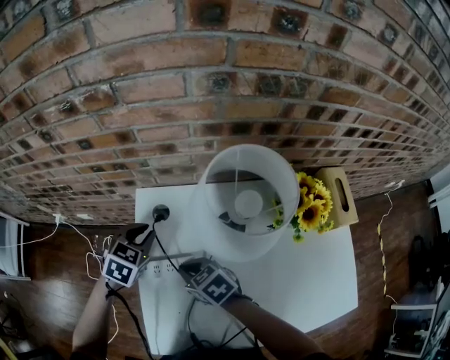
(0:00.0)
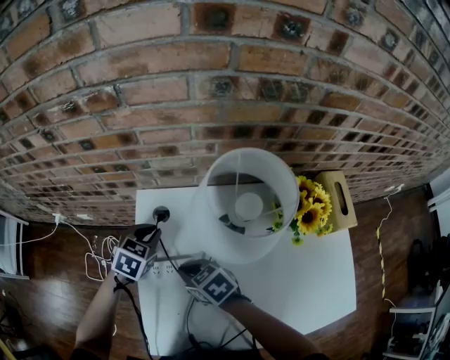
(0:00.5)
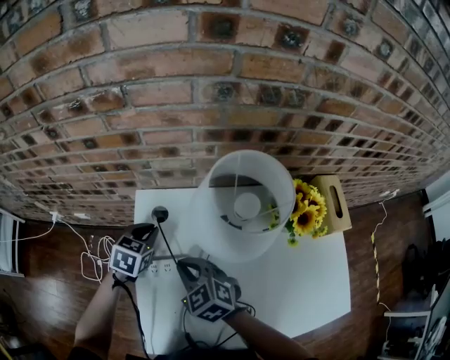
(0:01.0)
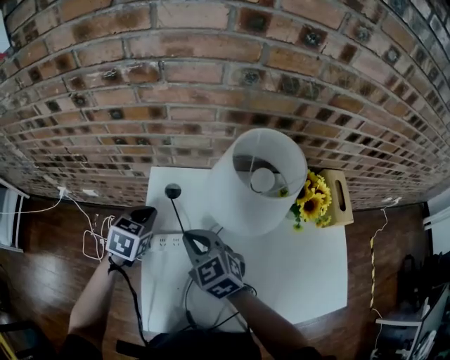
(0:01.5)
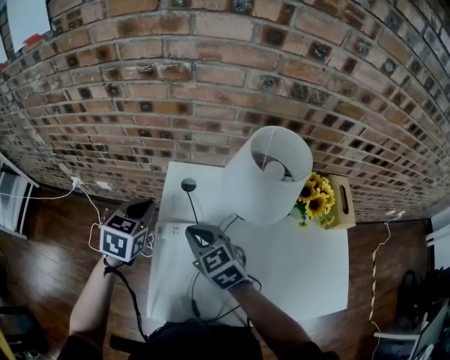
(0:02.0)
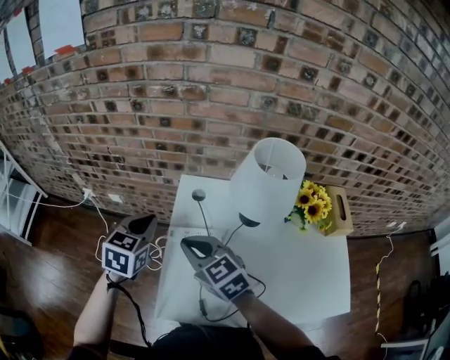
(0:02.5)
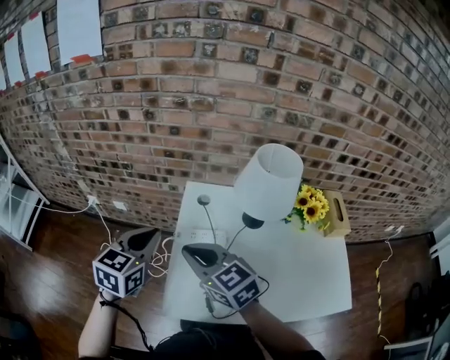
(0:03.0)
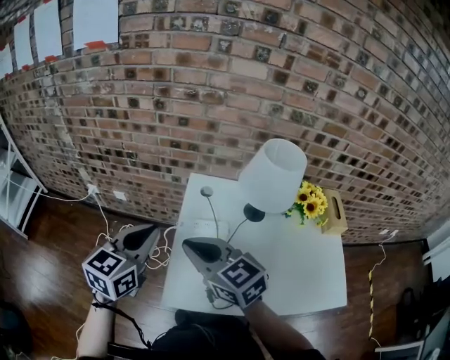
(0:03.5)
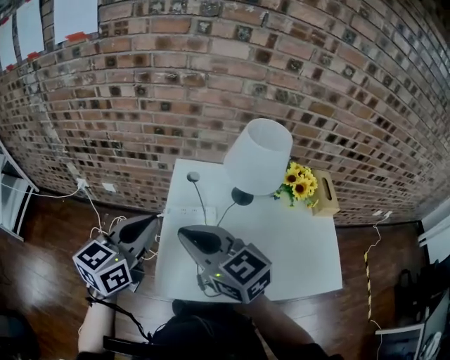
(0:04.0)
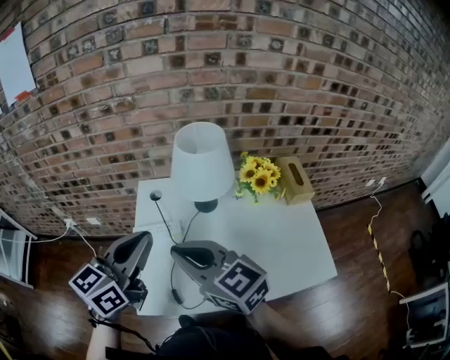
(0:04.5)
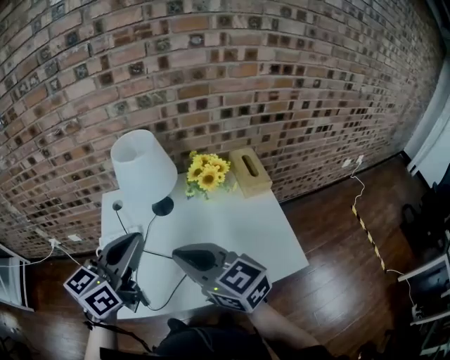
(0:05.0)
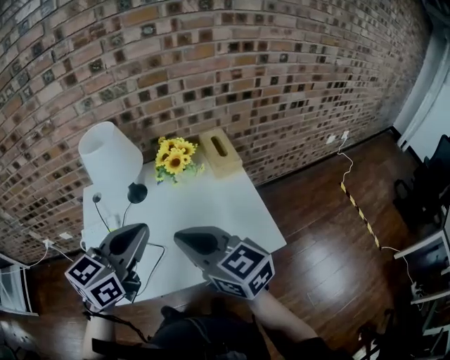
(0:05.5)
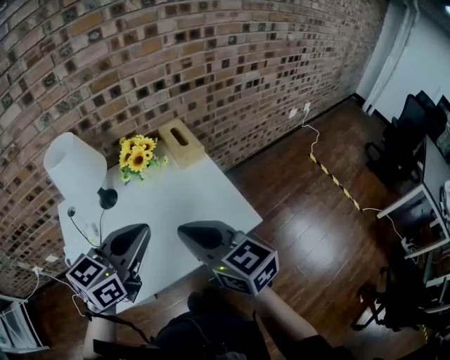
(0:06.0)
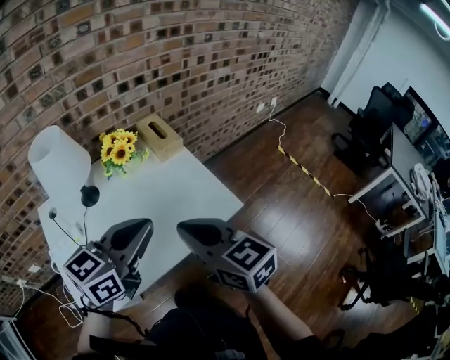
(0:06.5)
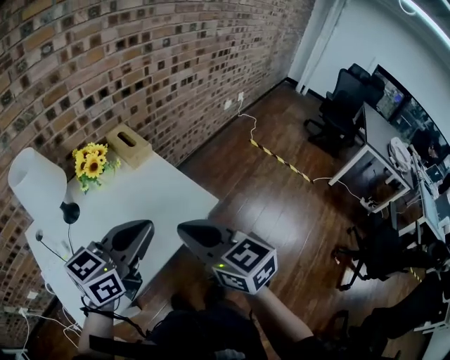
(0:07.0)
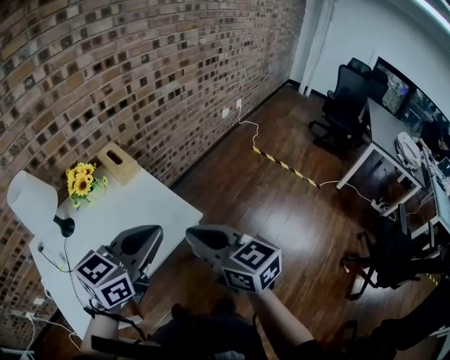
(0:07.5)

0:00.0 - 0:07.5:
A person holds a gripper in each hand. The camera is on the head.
0:00.0 - 0:02.0: The right gripper shifts approximately 10 cm upward, and changes its angle by about 30 degrees; the left gripper goes some 15 cm to the left, upward and backward, and changes its angle by roughly 20 degrees.
0:02.0 - 0:04.0: The left gripper goes about 25 cm backward and upward, and turns by roughly 30 degrees. Meanwhile the right gripper goes approximately 20 cm upward and backward, and swivels some 20 degrees.
0:04.0 - 0:05.5: The two grippers go some 35 cm to the right. The right gripper changes its angle by about 20 degrees. The left gripper turns by approximately 20 degrees.
0:05.5 - 0:07.5: The right gripper ends up approximately 25 cm from where it was, and turns by about 40 degrees, while the left gripper moves about 25 cm, and turns by about 40 degrees.

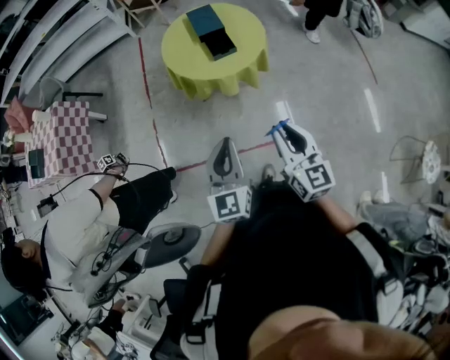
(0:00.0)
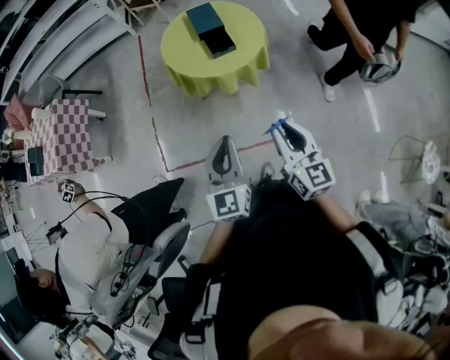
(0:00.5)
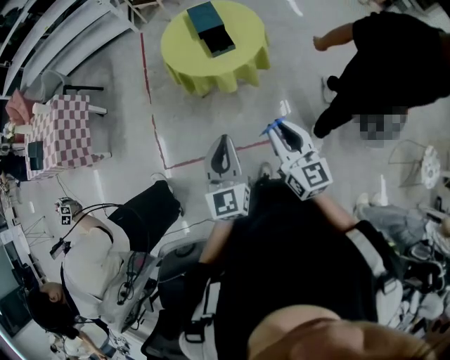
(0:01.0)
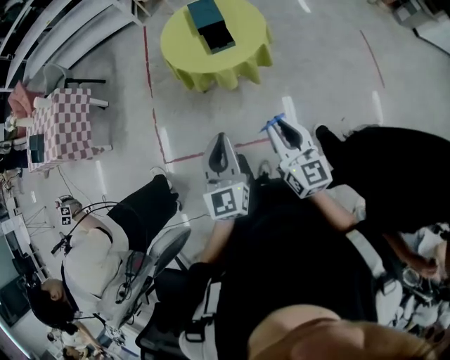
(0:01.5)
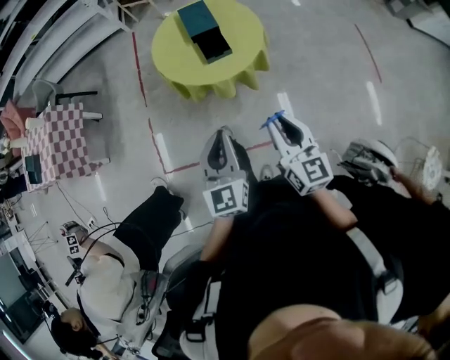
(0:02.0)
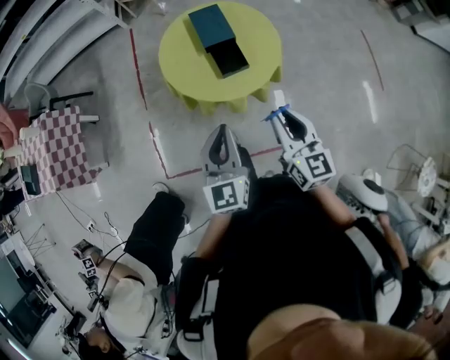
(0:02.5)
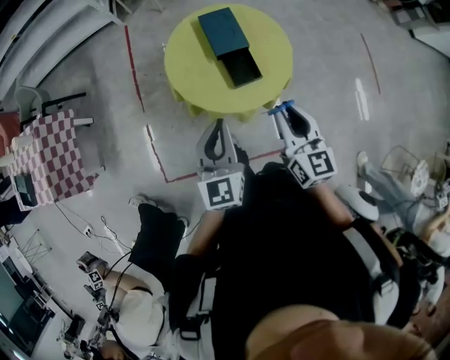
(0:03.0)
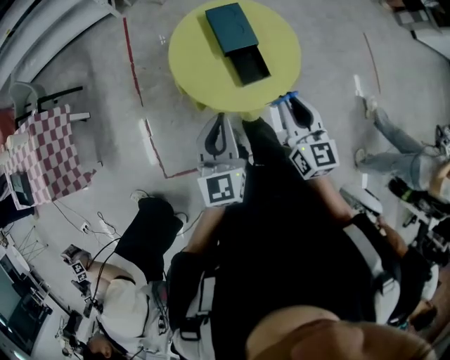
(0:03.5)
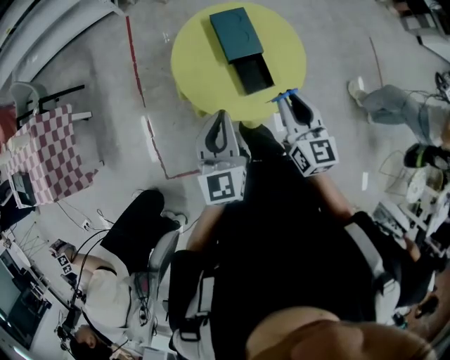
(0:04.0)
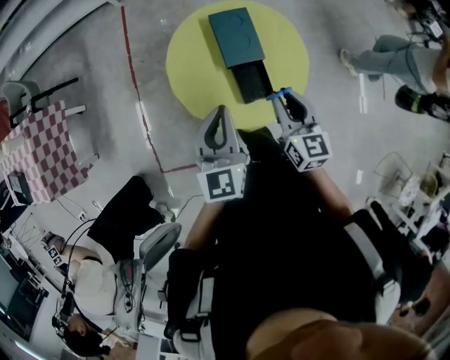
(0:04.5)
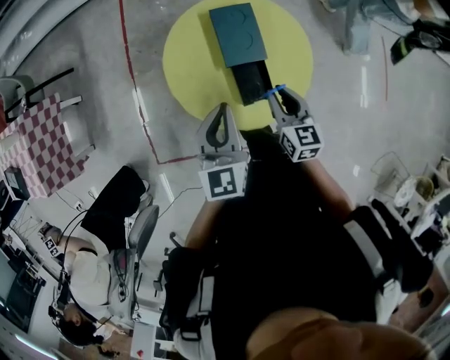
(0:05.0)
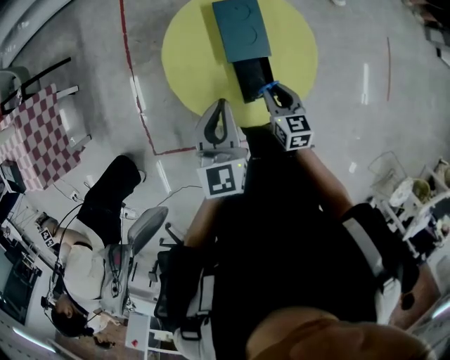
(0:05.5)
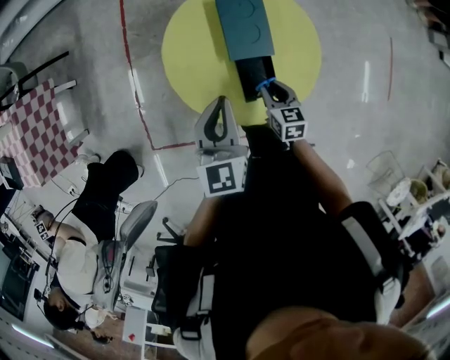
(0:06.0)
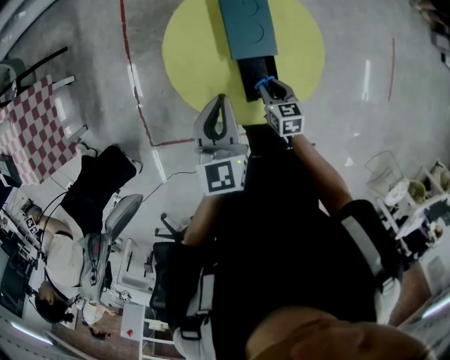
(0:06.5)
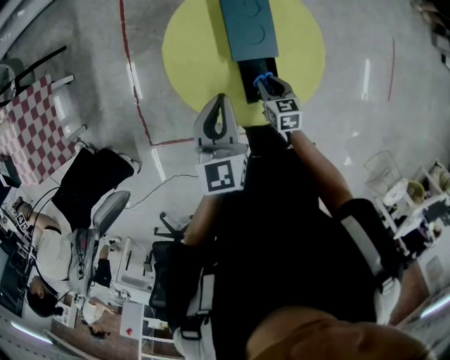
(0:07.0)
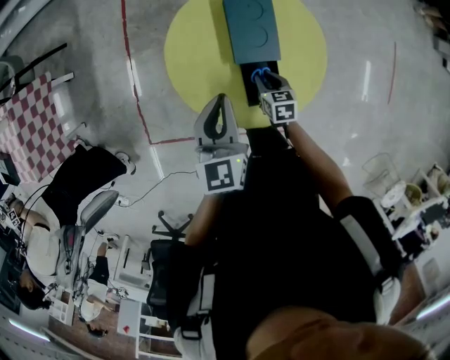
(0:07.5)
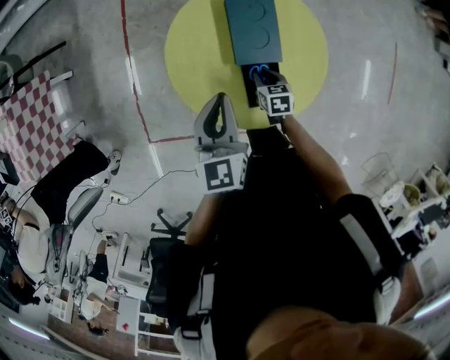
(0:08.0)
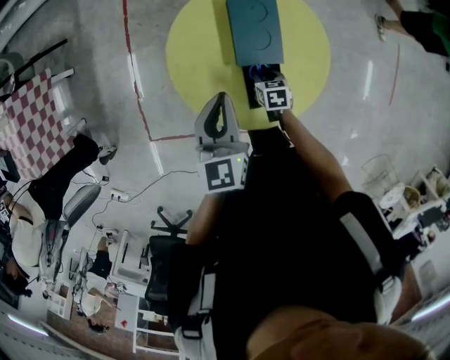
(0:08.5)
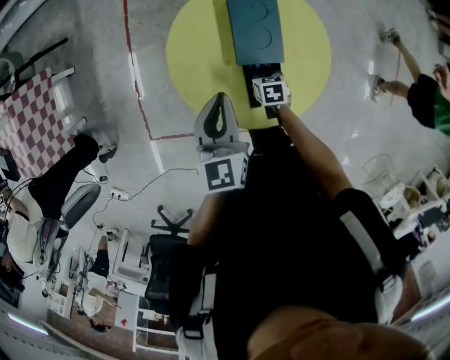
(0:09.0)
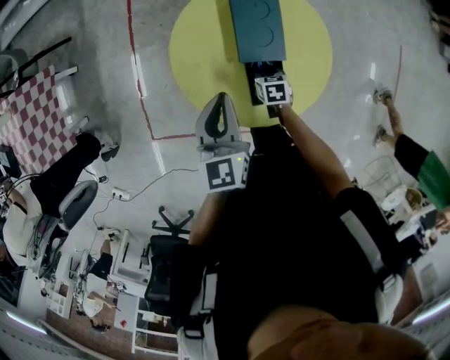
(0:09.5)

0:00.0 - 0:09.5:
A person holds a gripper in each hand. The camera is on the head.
0:00.0 - 0:02.0: The left gripper heads forward, covering roughly 10 cm. Meanwhile the right gripper moves forward and to the right, roughly 10 cm.
0:02.0 - 0:04.0: The two grippers go some 40 cm forward.
0:04.0 - 0:05.5: The right gripper is displaced downward and forward by roughly 25 cm, and changes its angle by about 30 degrees, while the left gripper shifts about 15 cm forward and downward.
0:05.5 - 0:07.5: The right gripper goes some 10 cm downward.
0:07.5 - 0:09.5: The right gripper is displaced downward by about 5 cm.

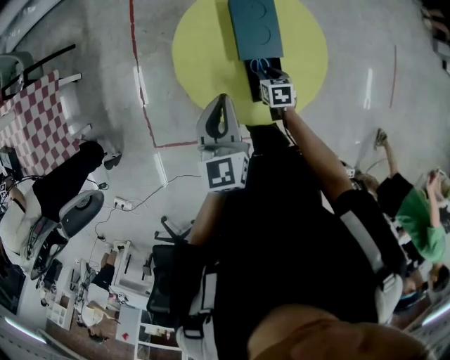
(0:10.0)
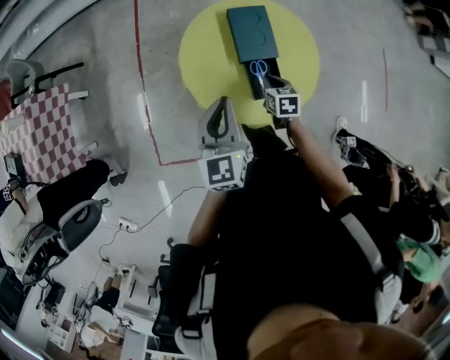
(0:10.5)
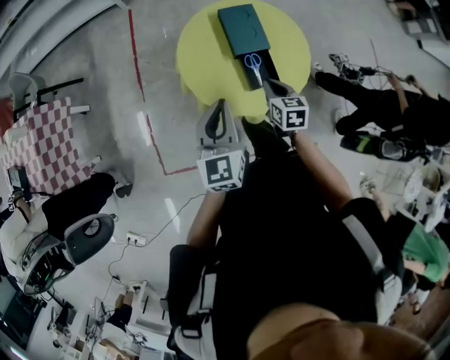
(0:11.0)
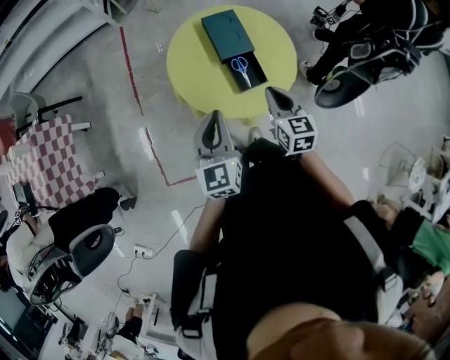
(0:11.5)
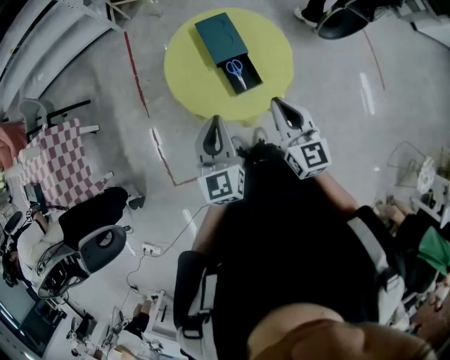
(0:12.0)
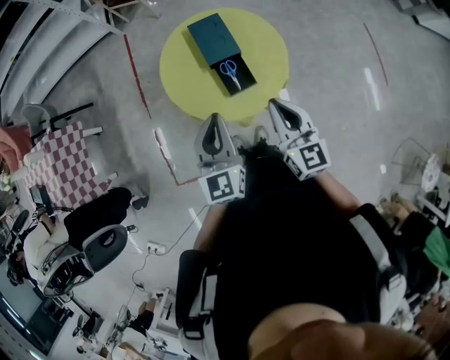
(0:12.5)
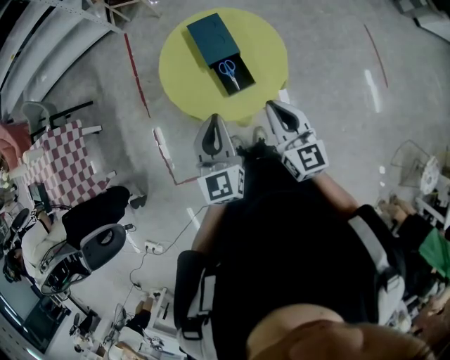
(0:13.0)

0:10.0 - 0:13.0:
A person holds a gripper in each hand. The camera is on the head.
0:10.0 - 0:11.5: The left gripper travels backward by about 20 cm; the right gripper travels upward and backward by about 35 cm, and points its fingers roughly 40 degrees further upward.
0:11.5 - 0:13.0: The left gripper travels to the right by about 5 cm. Meanwhile the right gripper is displaced upward by some 10 cm.

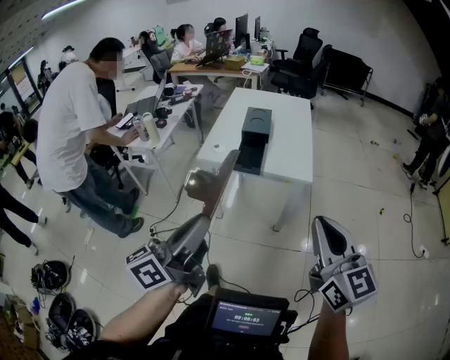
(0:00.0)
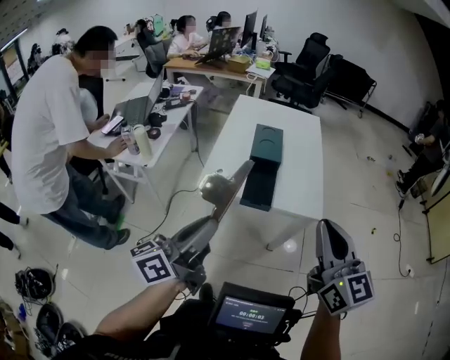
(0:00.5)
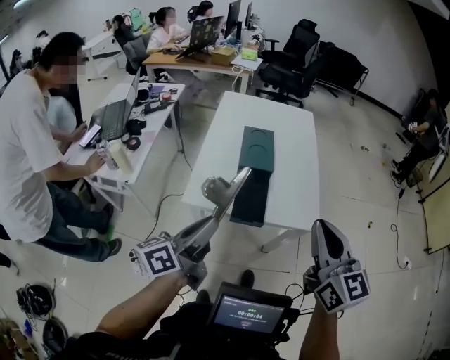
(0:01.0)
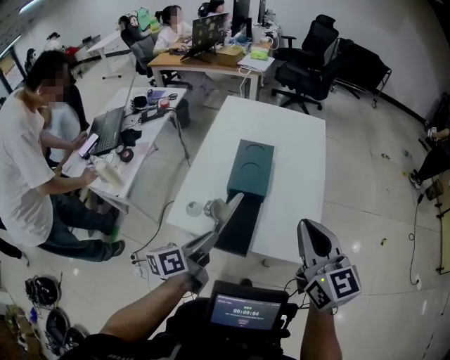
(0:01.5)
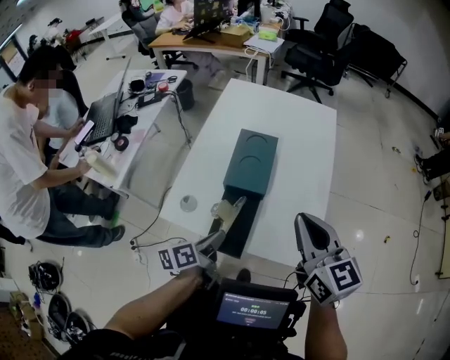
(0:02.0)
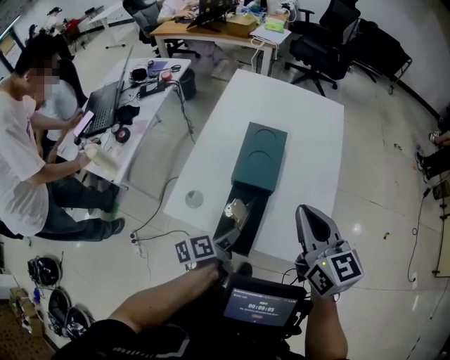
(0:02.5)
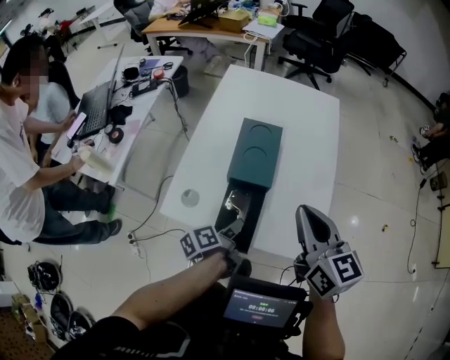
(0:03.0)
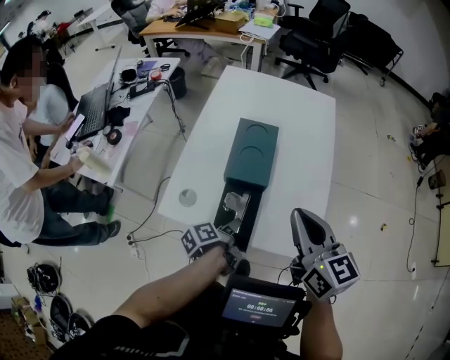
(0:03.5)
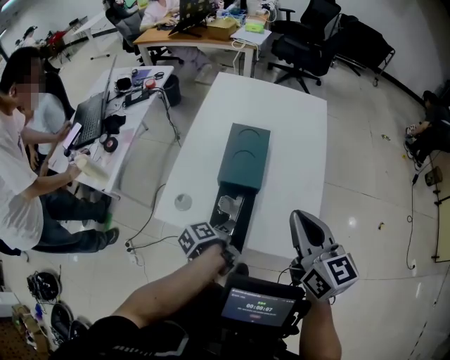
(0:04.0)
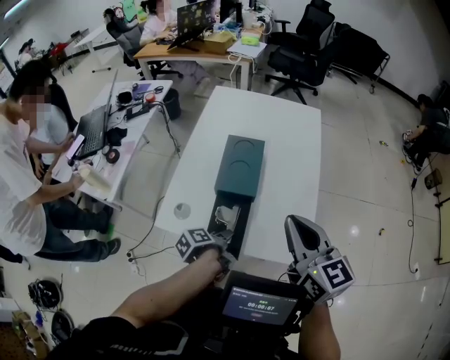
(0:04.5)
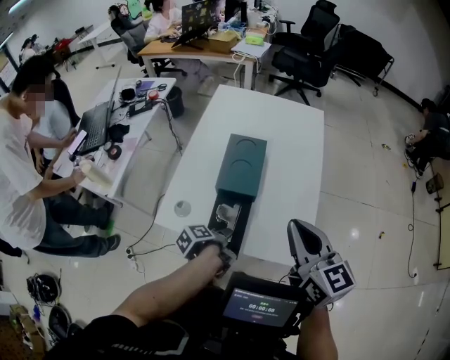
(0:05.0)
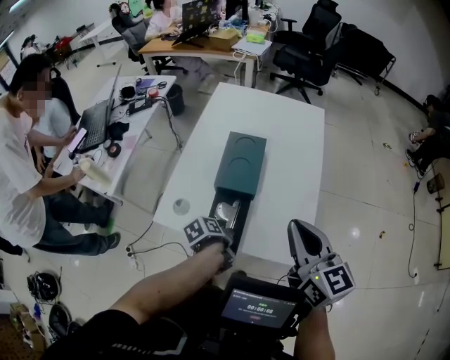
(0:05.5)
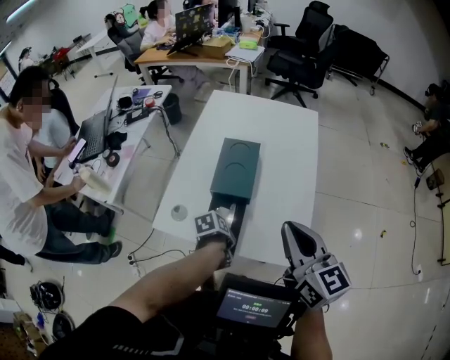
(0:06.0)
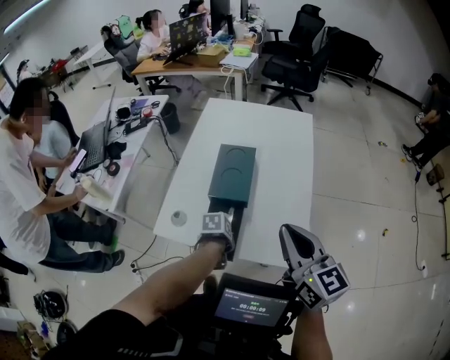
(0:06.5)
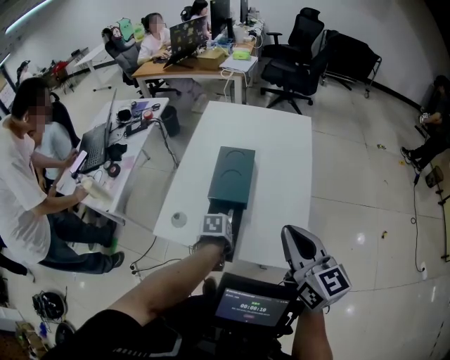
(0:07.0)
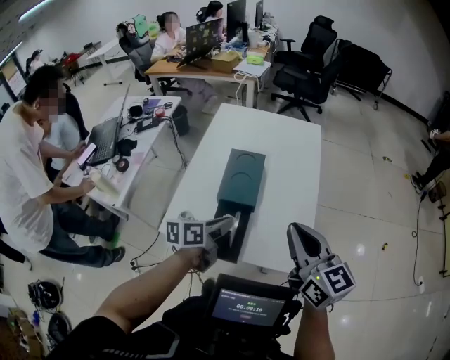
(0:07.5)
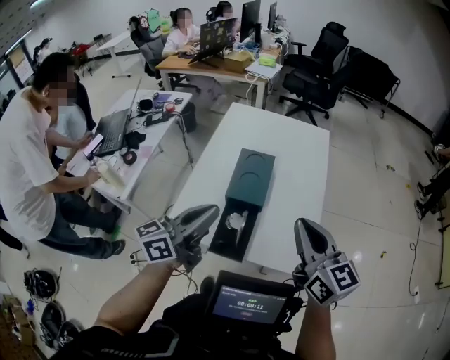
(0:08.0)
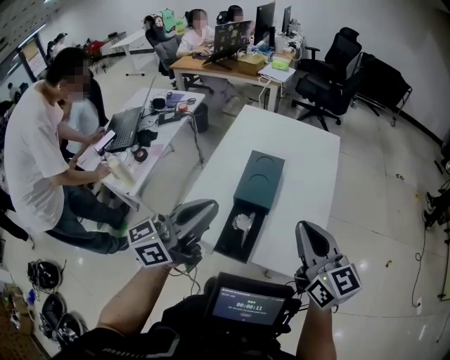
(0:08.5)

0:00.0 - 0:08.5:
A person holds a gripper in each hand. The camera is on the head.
0:00.0 - 0:02.0: The two grippers travel together, forward, some 70 cm. The left gripper is displaced downward by about 30 cm, and tips its fingers downward by some 40 degrees.
0:02.0 - 0:04.0: The left gripper moves downward, approximately 10 cm, and changes its angle by some 30 degrees.
0:04.0 - 0:06.5: The left gripper shifts by some 5 cm, and tilts its fingers approximately 30 degrees downward, while the right gripper changes place by some 5 cm.
0:06.5 - 0:08.5: The left gripper shifts some 40 cm upward, points its fingers roughly 80 degrees further upward, and closes. Meanwhile the right gripper changes place by about 5 cm.
